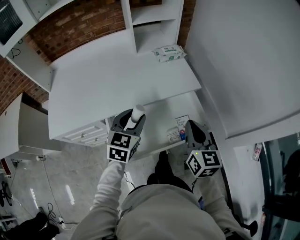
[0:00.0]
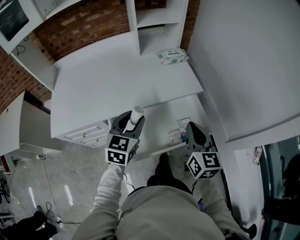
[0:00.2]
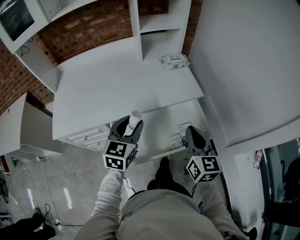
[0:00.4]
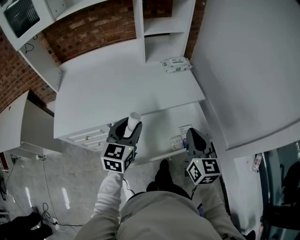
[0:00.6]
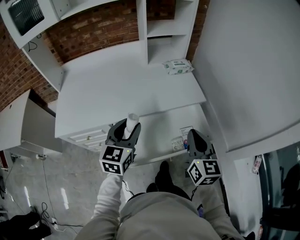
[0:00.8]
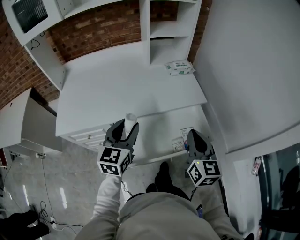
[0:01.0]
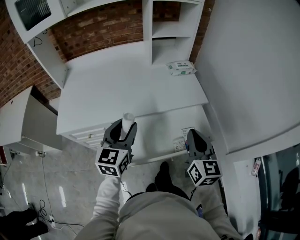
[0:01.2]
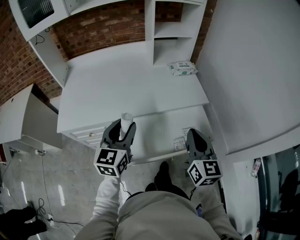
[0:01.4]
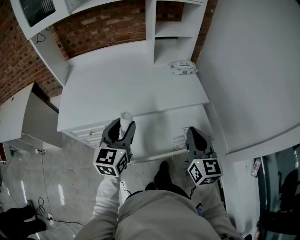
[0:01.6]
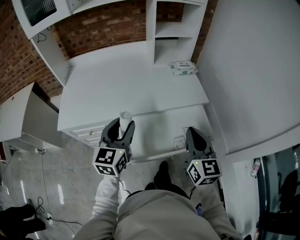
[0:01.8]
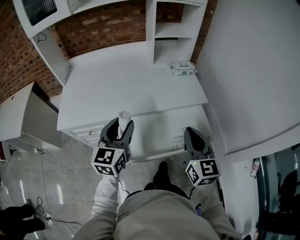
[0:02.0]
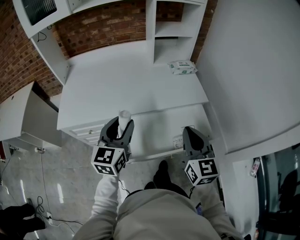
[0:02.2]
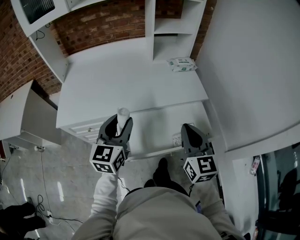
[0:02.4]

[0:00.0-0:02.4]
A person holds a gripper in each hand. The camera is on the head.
0:00.0 to 0:01.2: The right gripper ends up approximately 5 cm from where it was; the left gripper goes some 10 cm to the left, upward and backward.
0:01.2 to 0:02.4: There are only small adjustments of the grippers.

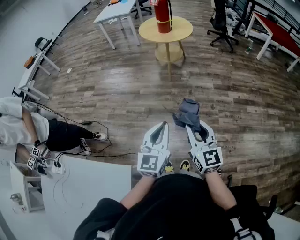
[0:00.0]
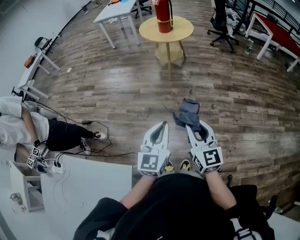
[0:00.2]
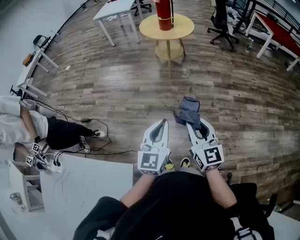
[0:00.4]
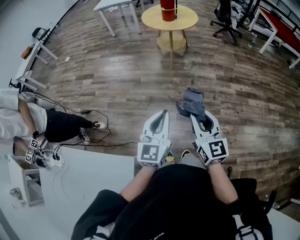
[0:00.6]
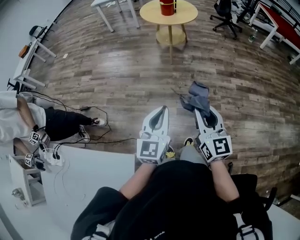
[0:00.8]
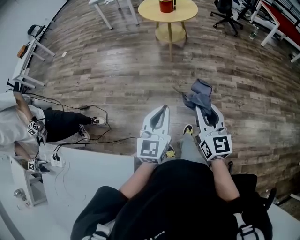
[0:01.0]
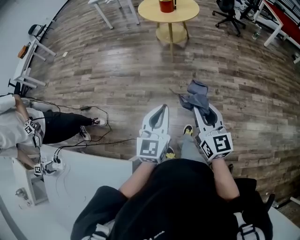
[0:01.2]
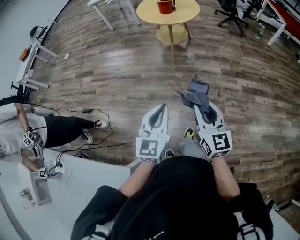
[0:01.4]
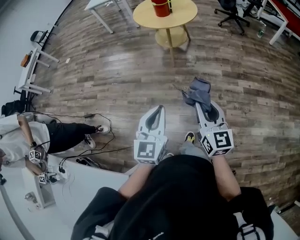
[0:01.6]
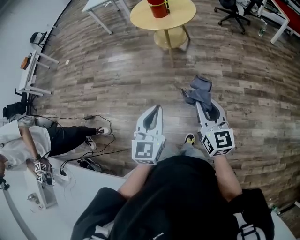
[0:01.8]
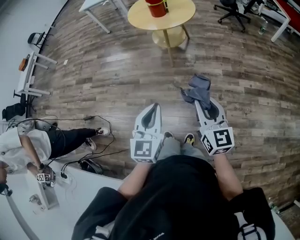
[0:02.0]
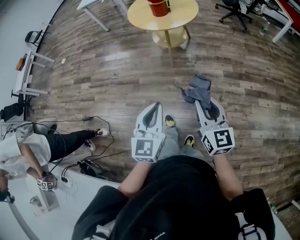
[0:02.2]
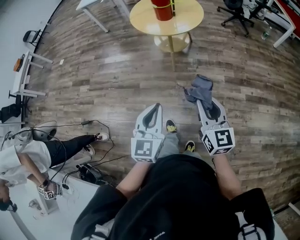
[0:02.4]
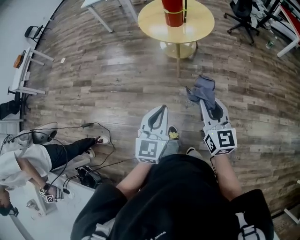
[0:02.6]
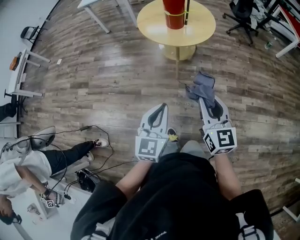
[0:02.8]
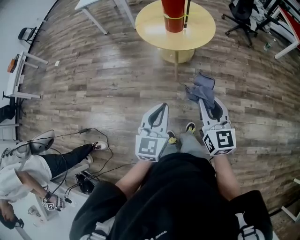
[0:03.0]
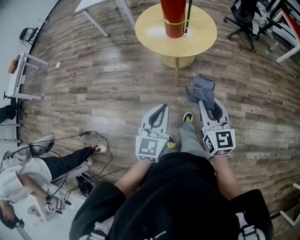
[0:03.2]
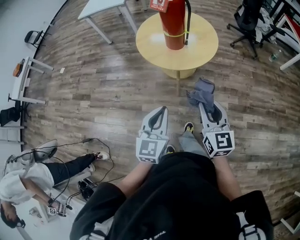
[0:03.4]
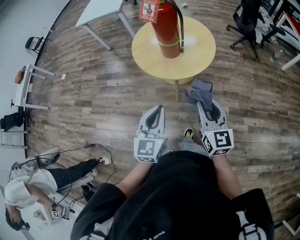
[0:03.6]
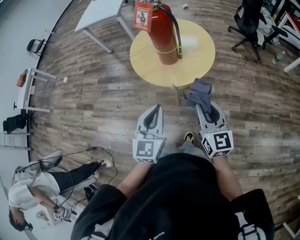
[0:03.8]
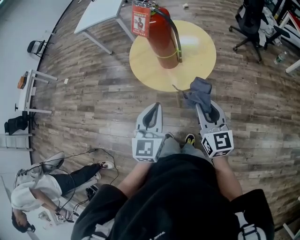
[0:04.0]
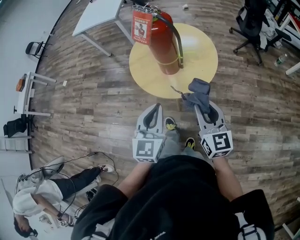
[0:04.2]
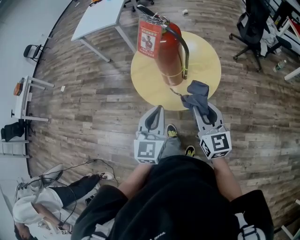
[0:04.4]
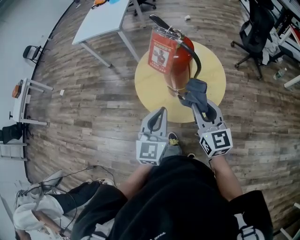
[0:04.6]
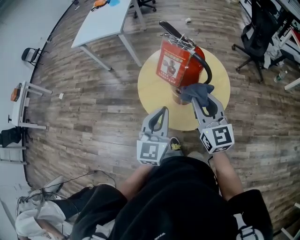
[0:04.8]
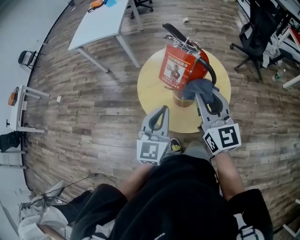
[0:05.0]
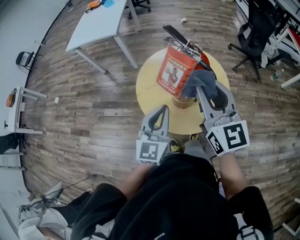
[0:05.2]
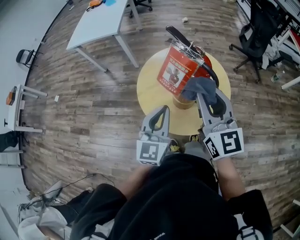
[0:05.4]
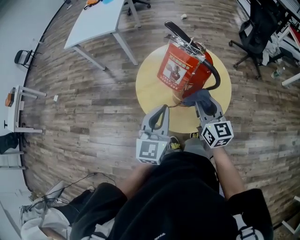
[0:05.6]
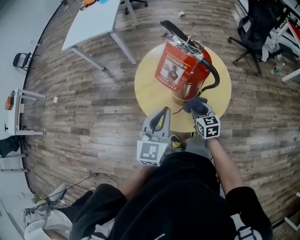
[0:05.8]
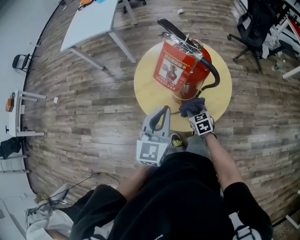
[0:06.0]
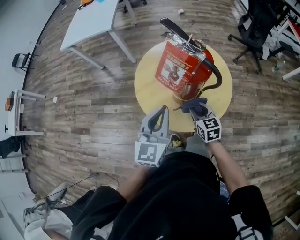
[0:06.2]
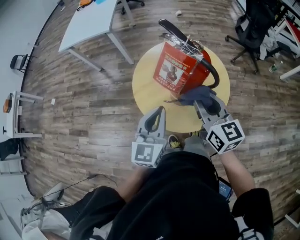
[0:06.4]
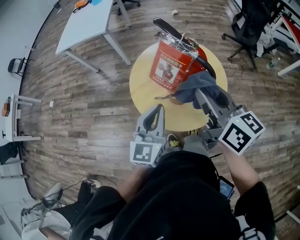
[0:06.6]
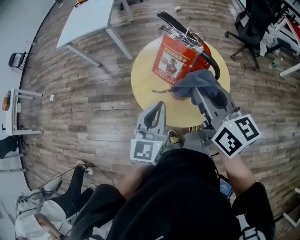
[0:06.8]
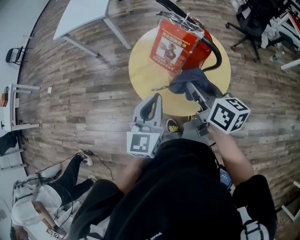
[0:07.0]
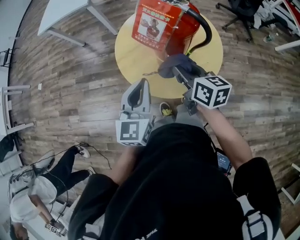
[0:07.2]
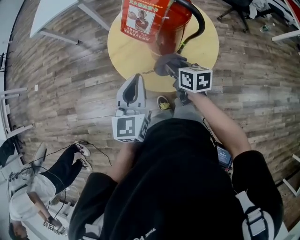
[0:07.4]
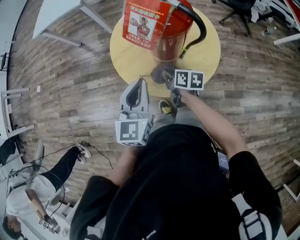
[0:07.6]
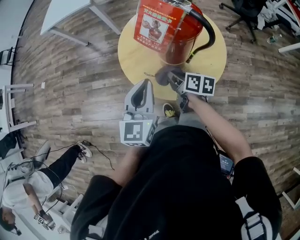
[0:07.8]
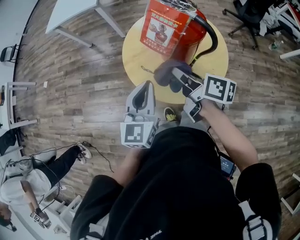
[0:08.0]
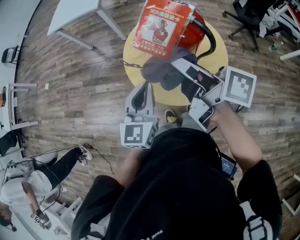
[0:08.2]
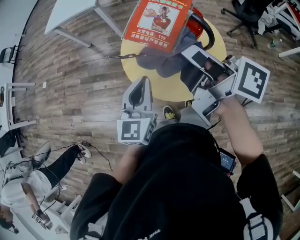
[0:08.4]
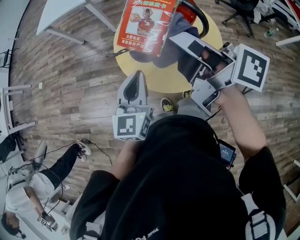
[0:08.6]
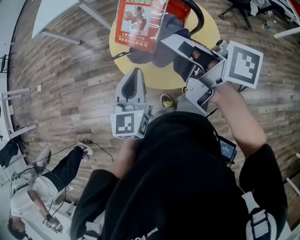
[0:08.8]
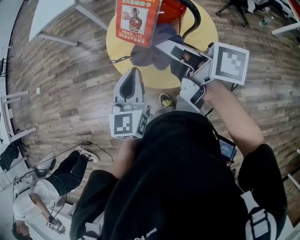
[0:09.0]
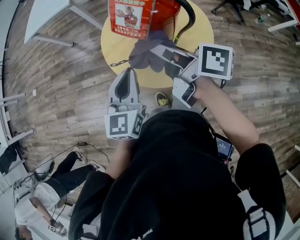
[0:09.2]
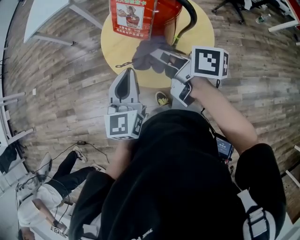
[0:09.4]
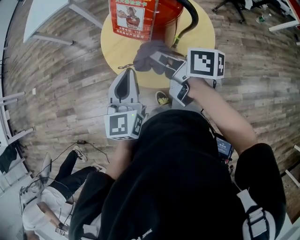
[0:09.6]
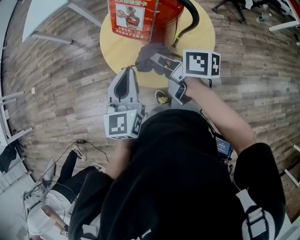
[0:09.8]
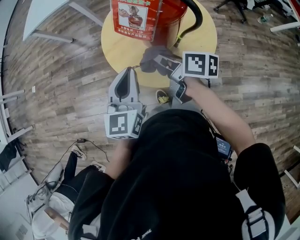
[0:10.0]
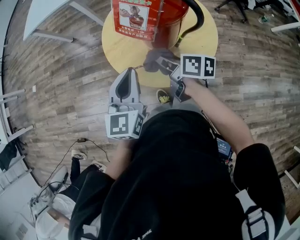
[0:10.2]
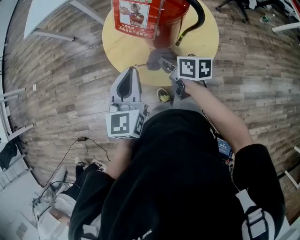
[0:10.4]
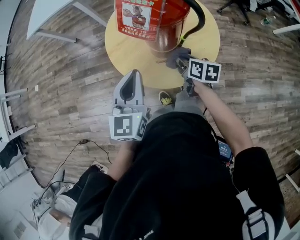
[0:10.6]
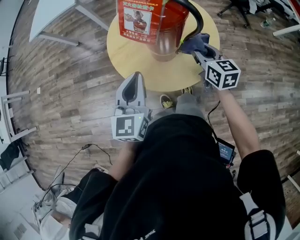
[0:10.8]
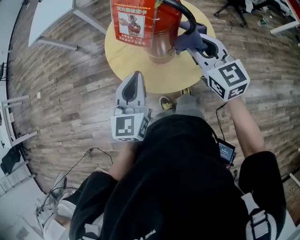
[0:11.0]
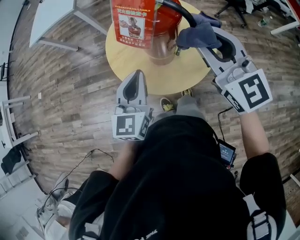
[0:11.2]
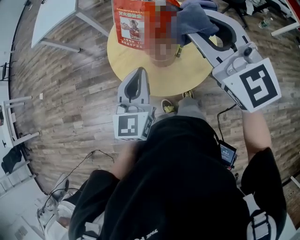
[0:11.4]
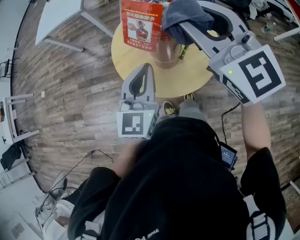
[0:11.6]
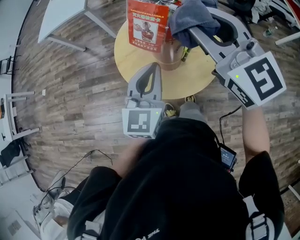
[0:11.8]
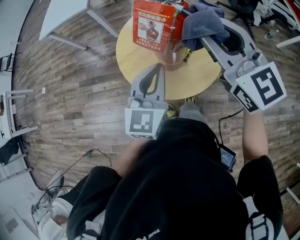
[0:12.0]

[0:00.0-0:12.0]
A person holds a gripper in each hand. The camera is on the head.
0:00.0 to 0:01.6: Both grippers move forward, roughly 20 cm.
0:01.6 to 0:03.0: The grippers both shift forward by roughly 35 cm.
0:03.0 to 0:04.4: Both grippers move forward, approximately 35 cm.
0:04.4 to 0:06.0: The right gripper goes approximately 30 cm downward and forward, and tips its fingers downward by approximately 40 degrees. Meanwhile the left gripper is displaced forward by some 15 cm.
0:06.0 to 0:07.6: The right gripper reaches roughly 35 cm upward, then returns, and rolls clockwise, seen from behind, by approximately 40 degrees.
0:07.6 to 0:09.0: The right gripper moves upward, some 30 cm, and angles its fingers upward, by about 40 degrees.
0:09.0 to 0:10.4: The right gripper shifts approximately 25 cm downward, and rotates roughly 30 degrees.
0:10.4 to 0:12.0: The right gripper is displaced upward by roughly 30 cm, and twists some 60 degrees counterclockwise, seen from behind. Meanwhile the left gripper heads to the right and upward, covering some 10 cm.

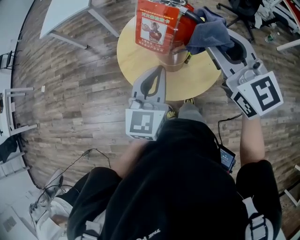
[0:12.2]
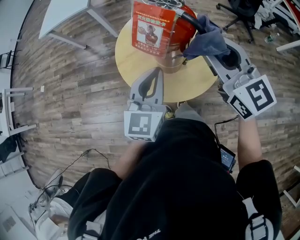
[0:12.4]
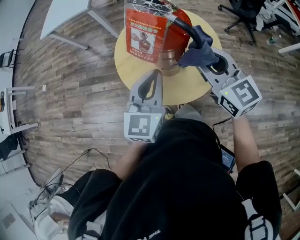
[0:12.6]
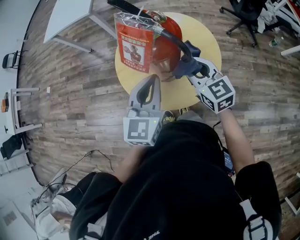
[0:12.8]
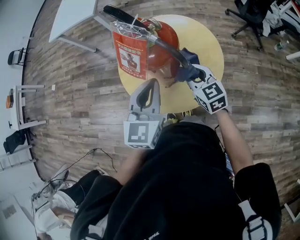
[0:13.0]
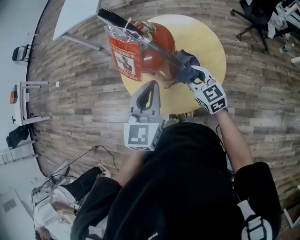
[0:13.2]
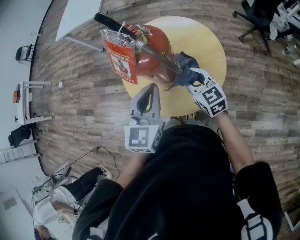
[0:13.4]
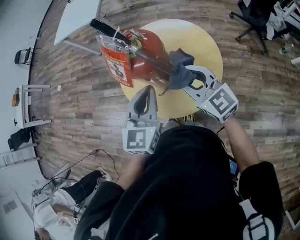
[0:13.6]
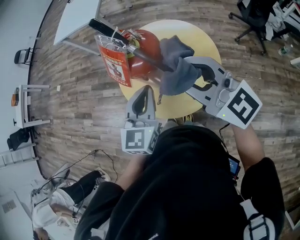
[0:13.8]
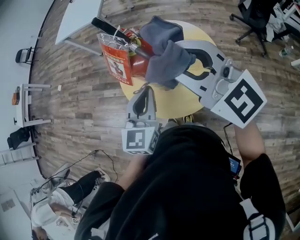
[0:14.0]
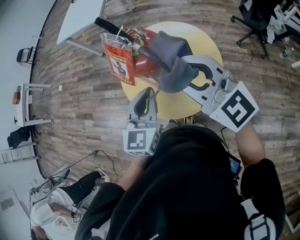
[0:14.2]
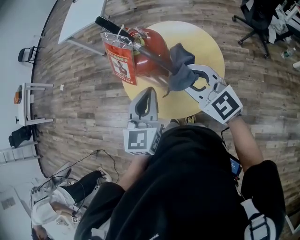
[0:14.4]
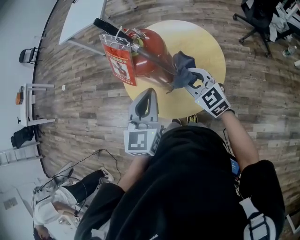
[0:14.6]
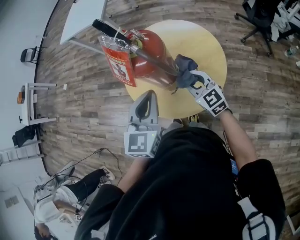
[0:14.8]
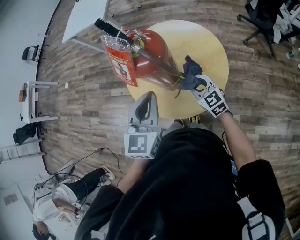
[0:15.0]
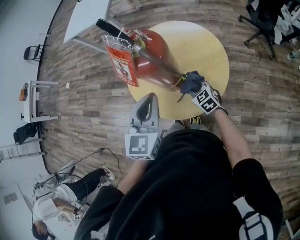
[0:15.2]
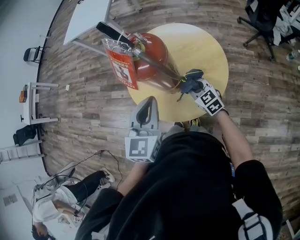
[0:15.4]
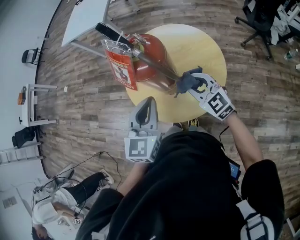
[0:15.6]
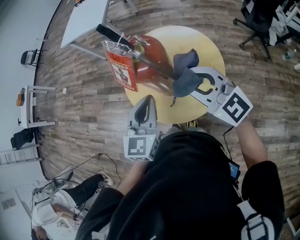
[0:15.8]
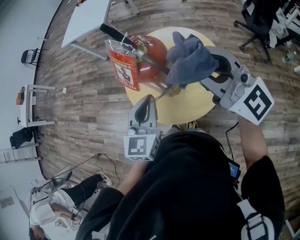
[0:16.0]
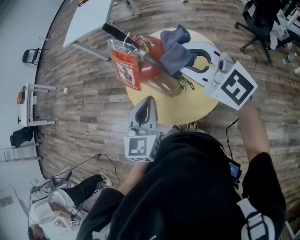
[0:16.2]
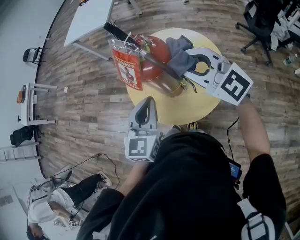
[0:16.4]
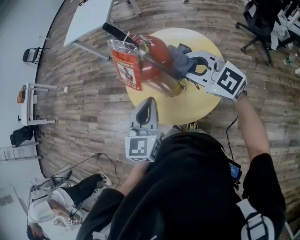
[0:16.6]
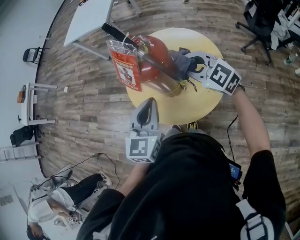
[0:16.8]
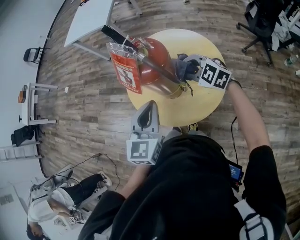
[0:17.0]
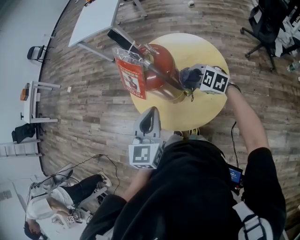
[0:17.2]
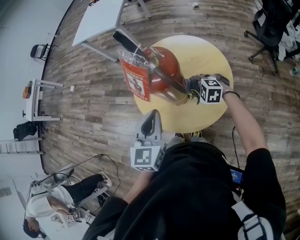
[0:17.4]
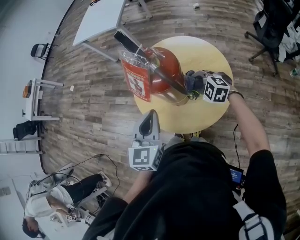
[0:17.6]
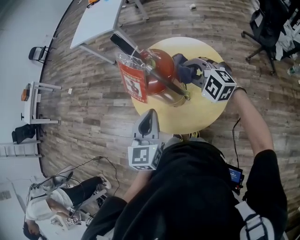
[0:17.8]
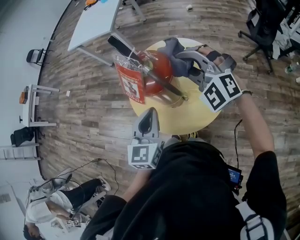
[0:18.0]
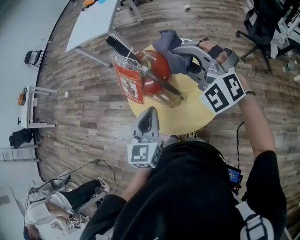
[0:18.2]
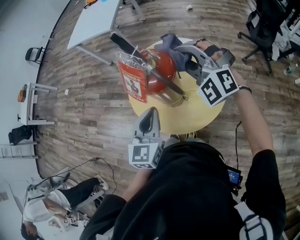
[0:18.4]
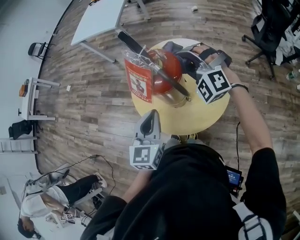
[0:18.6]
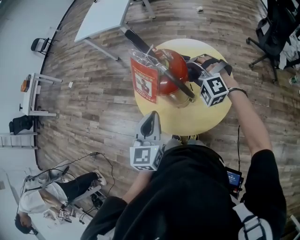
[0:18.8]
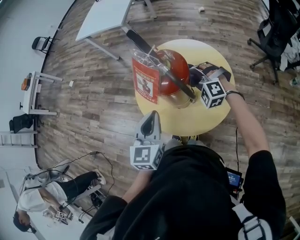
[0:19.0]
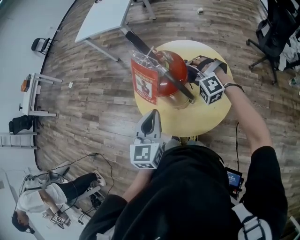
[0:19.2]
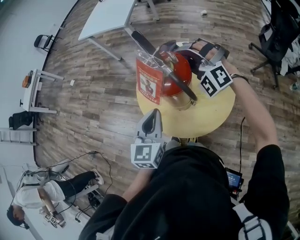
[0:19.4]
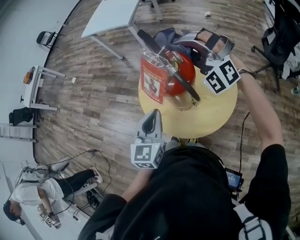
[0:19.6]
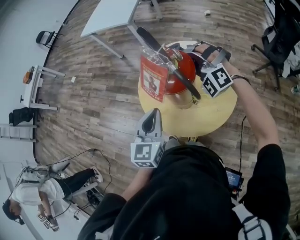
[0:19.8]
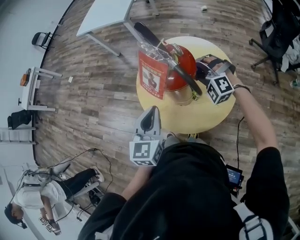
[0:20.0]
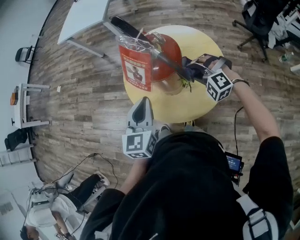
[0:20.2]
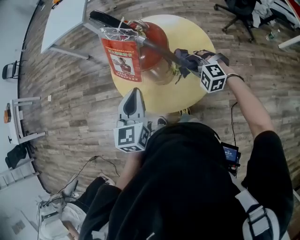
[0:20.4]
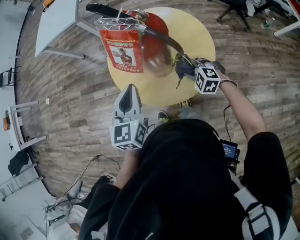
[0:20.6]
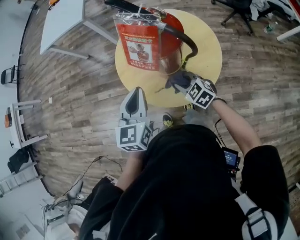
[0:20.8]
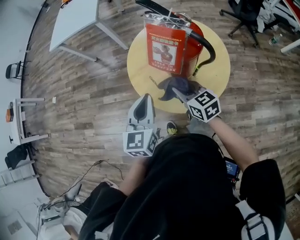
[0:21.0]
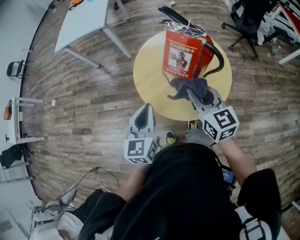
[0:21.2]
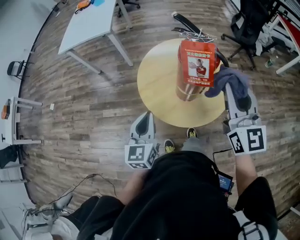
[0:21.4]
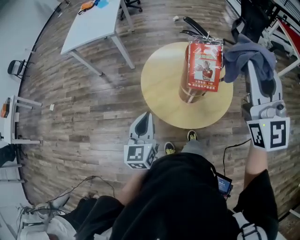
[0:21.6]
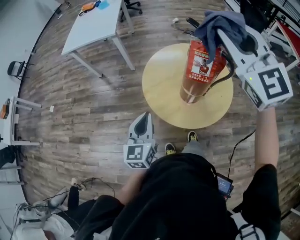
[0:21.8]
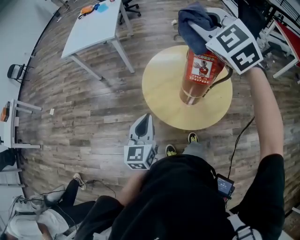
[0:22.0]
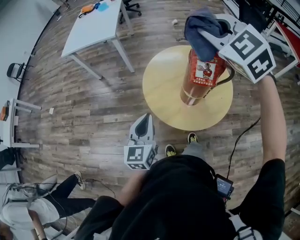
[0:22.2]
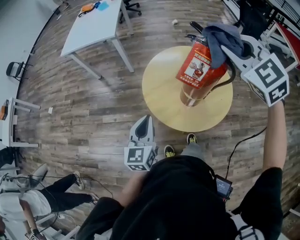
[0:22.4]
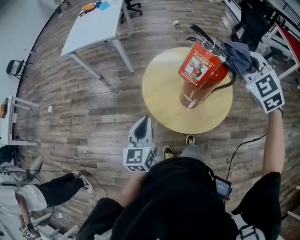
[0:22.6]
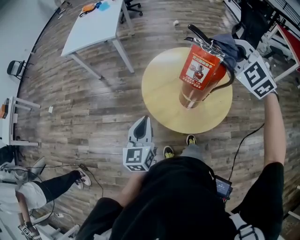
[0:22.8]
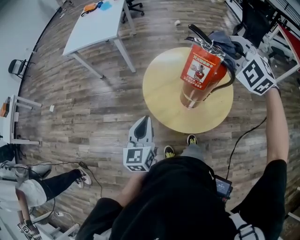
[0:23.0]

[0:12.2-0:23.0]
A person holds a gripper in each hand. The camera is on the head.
0:12.2 to 0:13.8: The right gripper reaches roughly 25 cm downward, then returns, and swivels about 30 degrees. The left gripper changes place by about 5 cm.
0:13.8 to 0:15.2: The right gripper shifts approximately 40 cm downward, and angles its fingers downward, by roughly 40 degrees.
0:15.2 to 0:16.8: The right gripper is displaced upward by about 25 cm, and rotates about 30 degrees.
0:16.8 to 0:18.4: The right gripper travels downward and back again, some 20 cm each way, and rotates around the line of its fingers by approximately 40 degrees, counterclockwise from behind.
0:18.4 to 0:20.0: The right gripper moves up and down over approximately 20 cm, changing direction 2 times.
0:20.0 to 0:21.4: The left gripper changes place by about 15 cm. Meanwhile the right gripper goes some 25 cm upward, and angles its fingers upward, by approximately 30 degrees.
0:21.4 to 0:23.0: The right gripper shifts some 15 cm forward, and rolls counterclockwise, seen from behind, by some 60 degrees.
